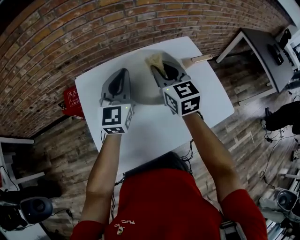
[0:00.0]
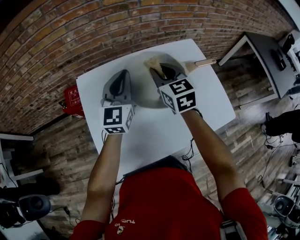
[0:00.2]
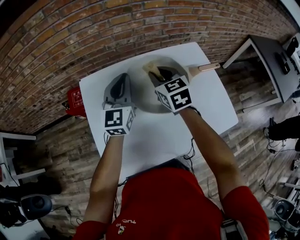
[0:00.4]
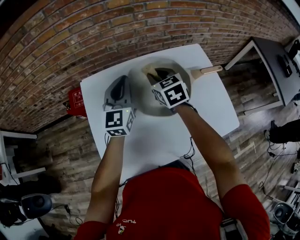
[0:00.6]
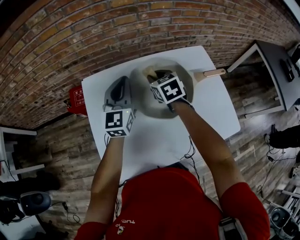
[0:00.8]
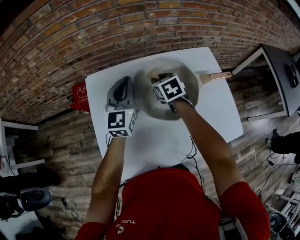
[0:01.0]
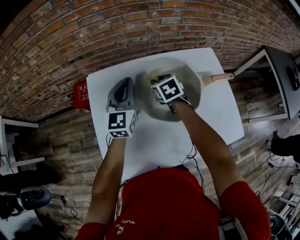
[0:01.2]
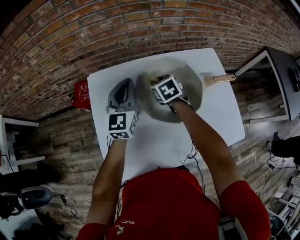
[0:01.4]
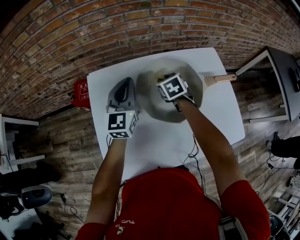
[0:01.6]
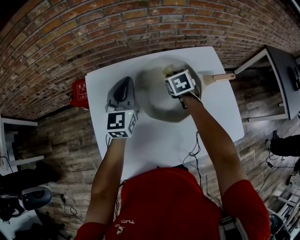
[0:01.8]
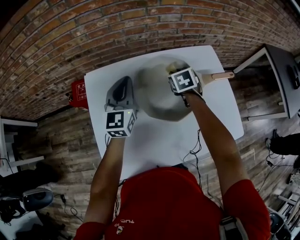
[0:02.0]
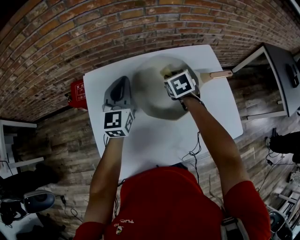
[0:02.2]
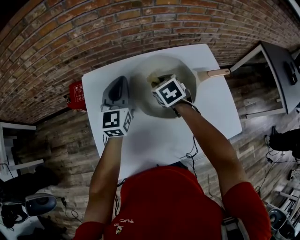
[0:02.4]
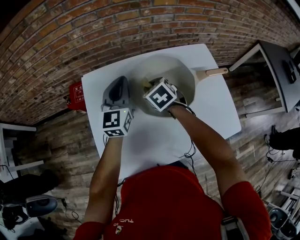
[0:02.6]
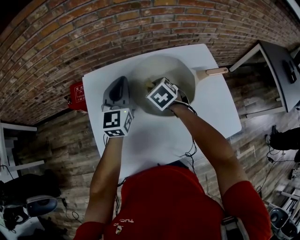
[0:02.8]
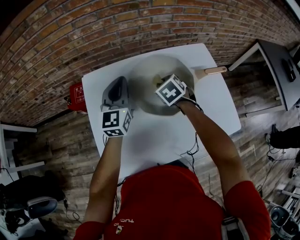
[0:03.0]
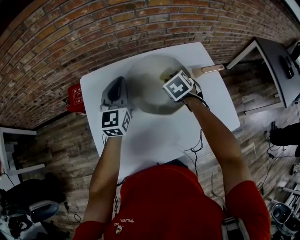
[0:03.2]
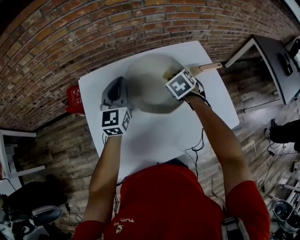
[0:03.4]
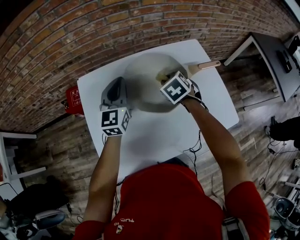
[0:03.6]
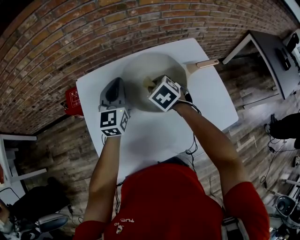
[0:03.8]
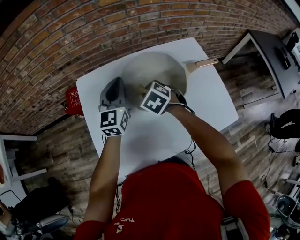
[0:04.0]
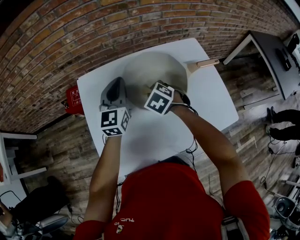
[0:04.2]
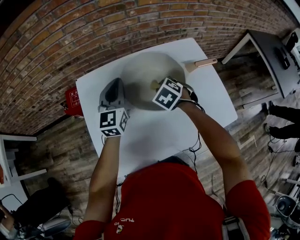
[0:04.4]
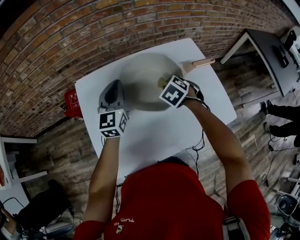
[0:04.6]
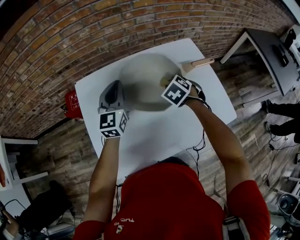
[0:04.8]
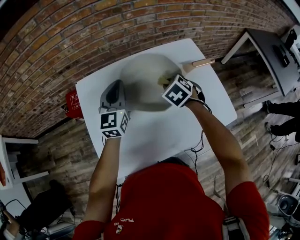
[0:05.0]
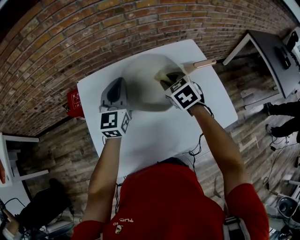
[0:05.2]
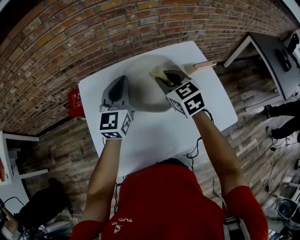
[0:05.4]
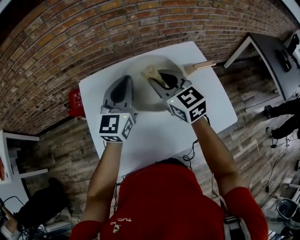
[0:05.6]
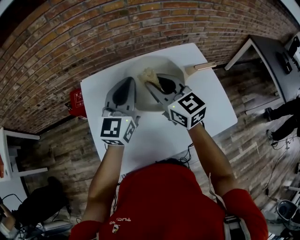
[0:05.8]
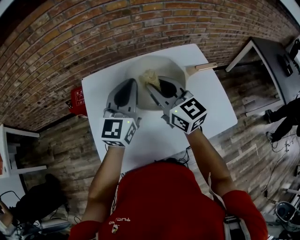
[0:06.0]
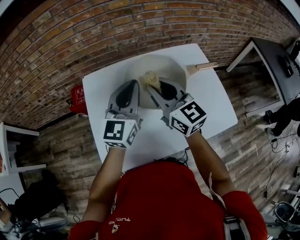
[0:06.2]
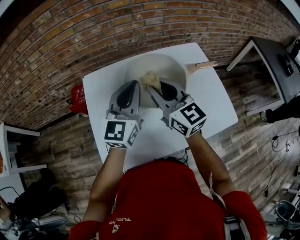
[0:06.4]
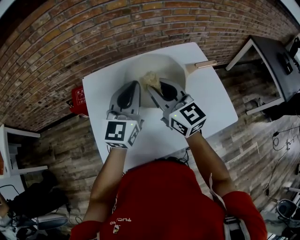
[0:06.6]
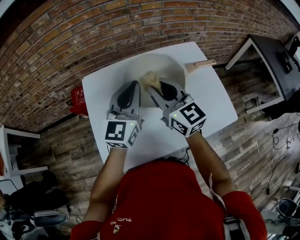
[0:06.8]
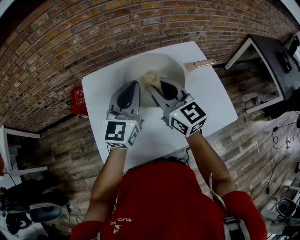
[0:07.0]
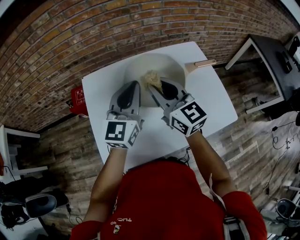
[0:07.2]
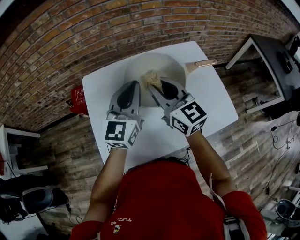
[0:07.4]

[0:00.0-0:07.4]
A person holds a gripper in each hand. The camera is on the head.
0:00.0 to 0:01.4: The left gripper travels forward and downward by approximately 10 cm. Meanwhile the right gripper moves downward and forward, some 20 cm, and angles its fingers downward, by some 40 degrees.
0:01.4 to 0:03.0: The right gripper swings left and right, some 15 cm each way, with 2 reversals.
0:03.0 to 0:04.4: The right gripper moves left and right over about 10 cm, changing direction 2 times.
0:04.4 to 0:06.0: The right gripper goes approximately 20 cm upward, and angles its fingers upward, by some 60 degrees; the left gripper is displaced upward, backward and to the right by approximately 10 cm.
0:06.0 to 0:07.4: There are only small adjustments of the grippers.

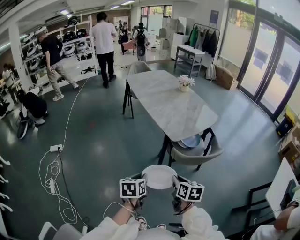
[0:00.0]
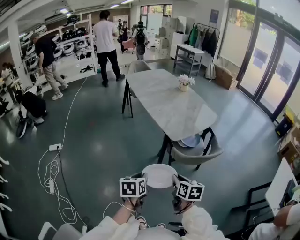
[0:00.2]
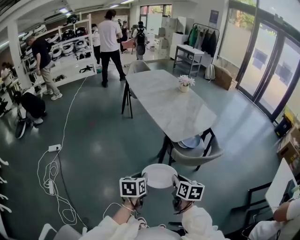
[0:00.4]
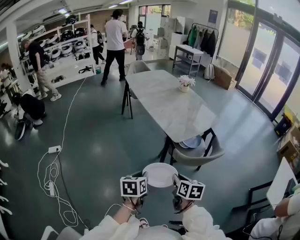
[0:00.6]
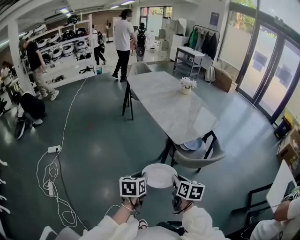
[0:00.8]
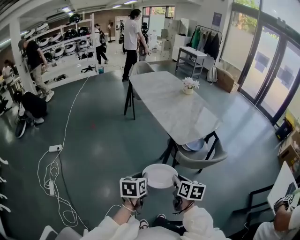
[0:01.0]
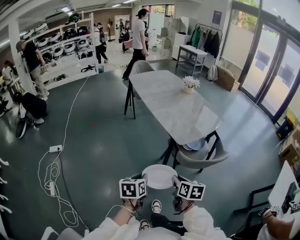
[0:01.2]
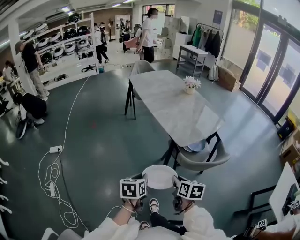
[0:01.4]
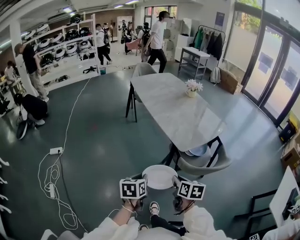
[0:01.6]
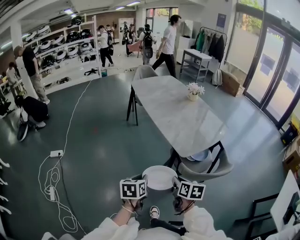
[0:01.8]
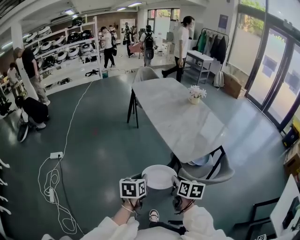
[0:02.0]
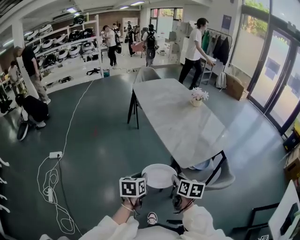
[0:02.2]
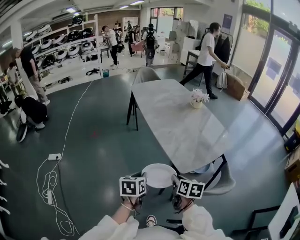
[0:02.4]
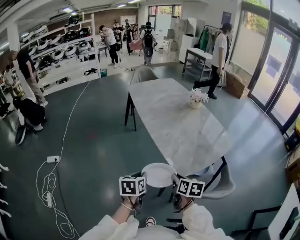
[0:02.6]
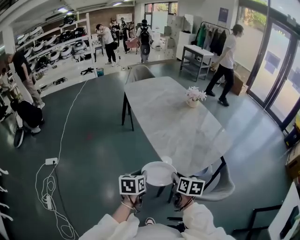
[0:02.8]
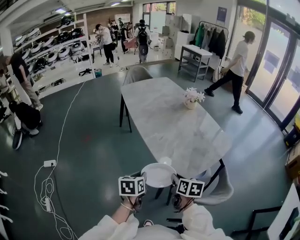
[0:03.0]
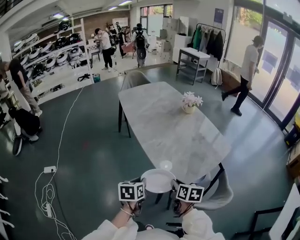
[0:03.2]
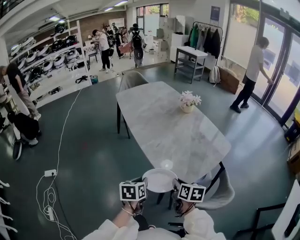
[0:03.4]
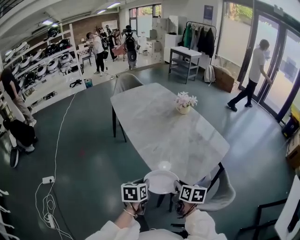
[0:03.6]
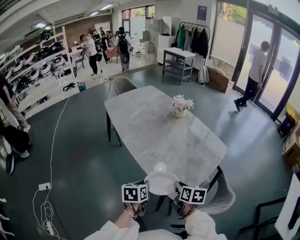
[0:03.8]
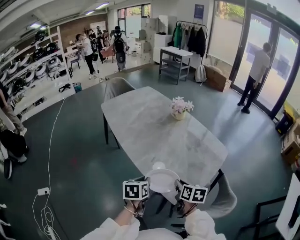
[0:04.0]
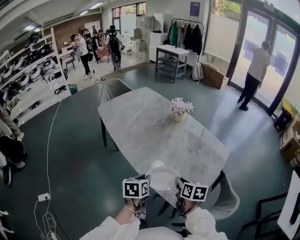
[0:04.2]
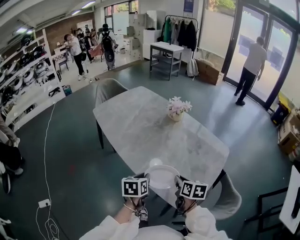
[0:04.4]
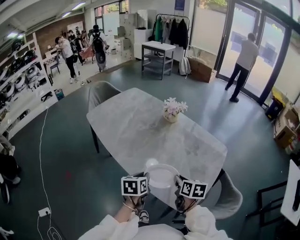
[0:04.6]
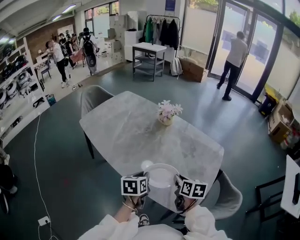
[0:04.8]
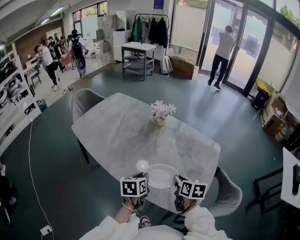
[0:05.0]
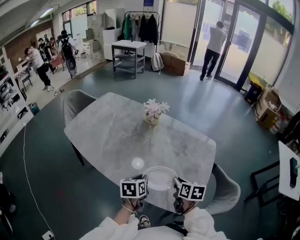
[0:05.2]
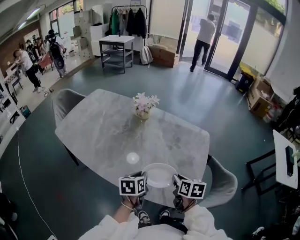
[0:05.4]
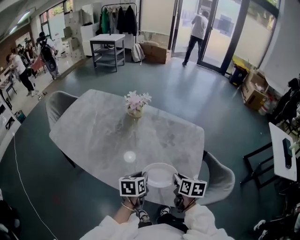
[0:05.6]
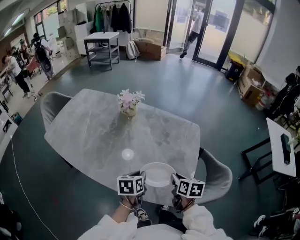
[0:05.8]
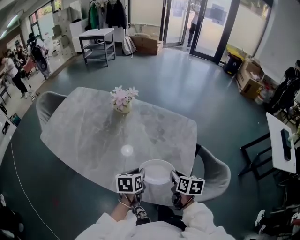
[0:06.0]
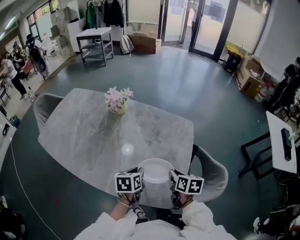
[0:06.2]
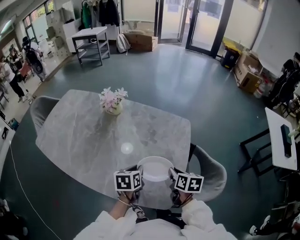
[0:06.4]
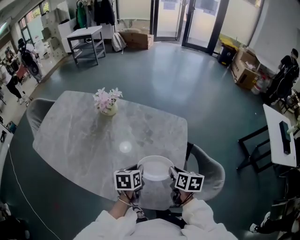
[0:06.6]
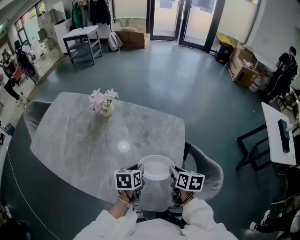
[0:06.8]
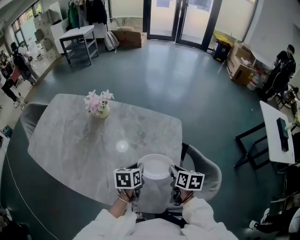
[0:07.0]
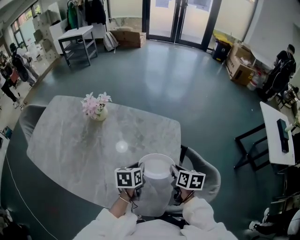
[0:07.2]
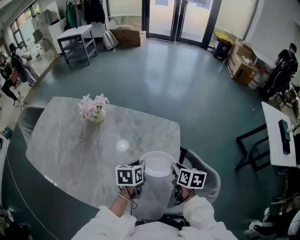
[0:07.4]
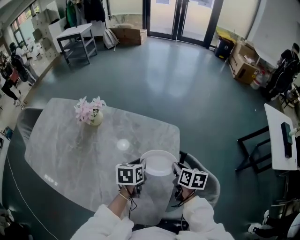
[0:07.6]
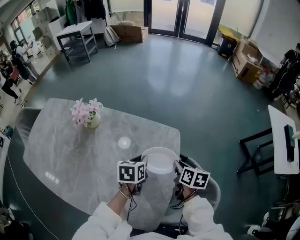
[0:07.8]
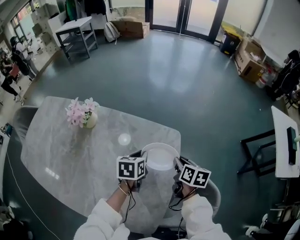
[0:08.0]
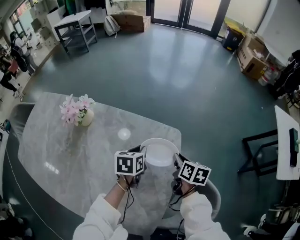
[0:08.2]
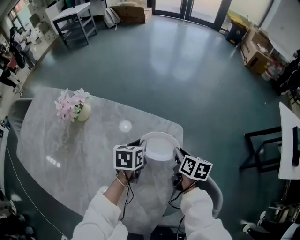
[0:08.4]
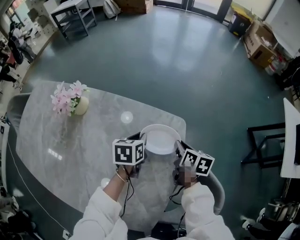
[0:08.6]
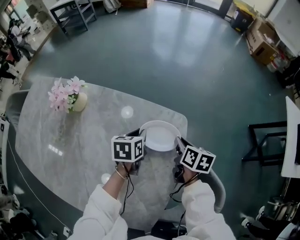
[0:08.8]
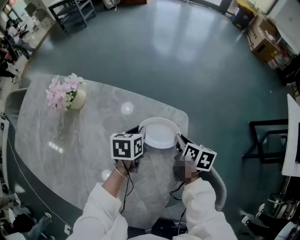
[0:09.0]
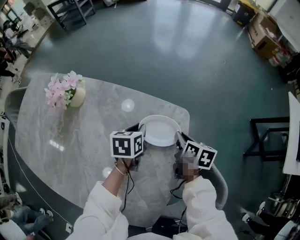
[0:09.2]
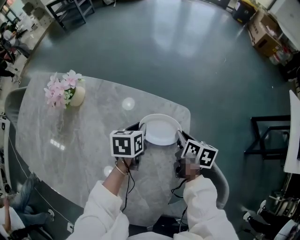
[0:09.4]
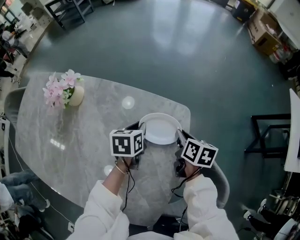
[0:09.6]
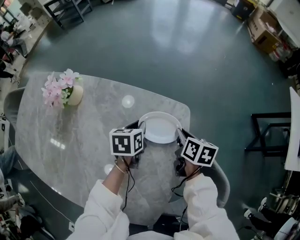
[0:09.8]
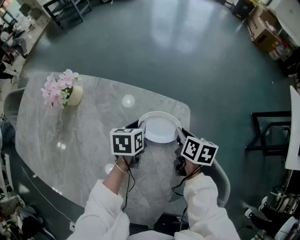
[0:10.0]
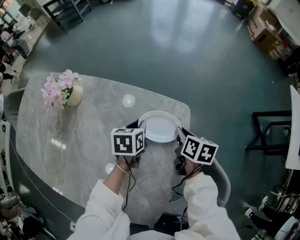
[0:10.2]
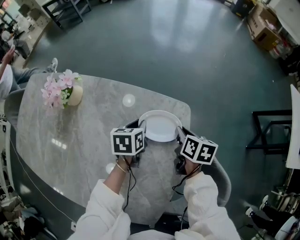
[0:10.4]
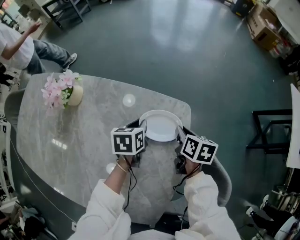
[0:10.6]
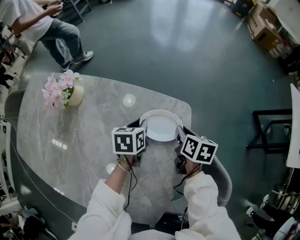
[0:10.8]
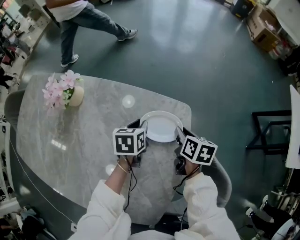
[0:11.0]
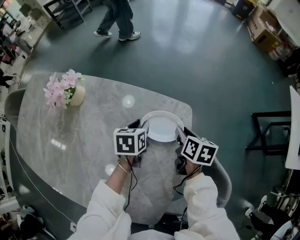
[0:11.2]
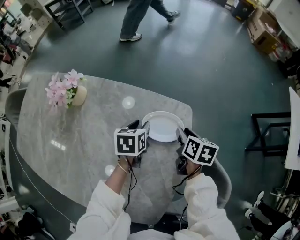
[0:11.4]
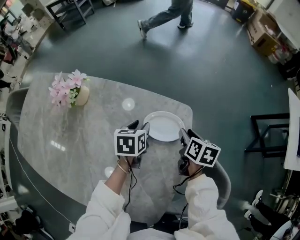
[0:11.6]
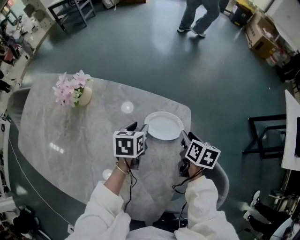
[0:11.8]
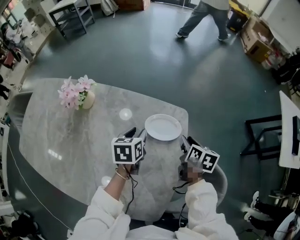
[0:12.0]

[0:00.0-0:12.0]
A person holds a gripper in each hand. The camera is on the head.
0:00.0 to 0:01.6: Both grippers move forward and to the left, about 10 cm.
0:01.6 to 0:03.0: Both grippers travel together forward, roughly 25 cm.
0:03.0 to 0:04.4: Both grippers move forward, roughly 20 cm.
0:04.4 to 0:06.0: The left gripper moves approximately 15 cm, and rotates about 30 degrees. The right gripper moves about 10 cm, and swivels roughly 30 degrees.
0:06.0 to 0:07.6: The two grippers go about 20 cm forward and to the right.
0:07.6 to 0:09.0: Both grippers travel together forward and downward, some 15 cm.
0:09.0 to 0:10.4: There are only small adjustments of the grippers.
0:10.4 to 0:12.0: The two grippers go some 5 cm upward. The left gripper opens. The right gripper opens up.

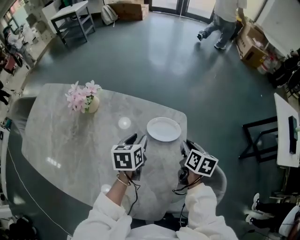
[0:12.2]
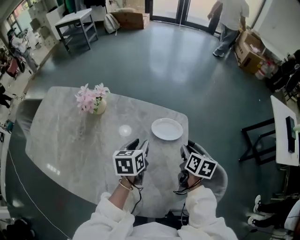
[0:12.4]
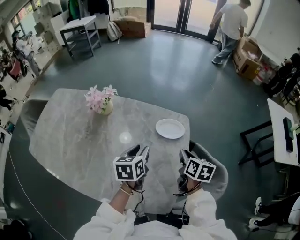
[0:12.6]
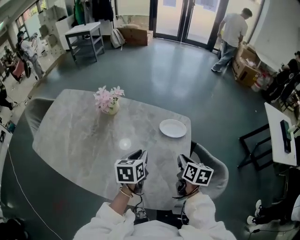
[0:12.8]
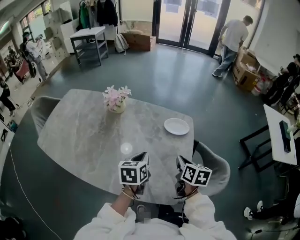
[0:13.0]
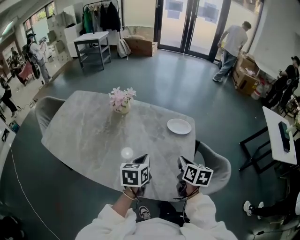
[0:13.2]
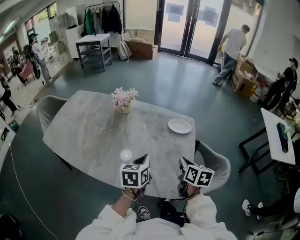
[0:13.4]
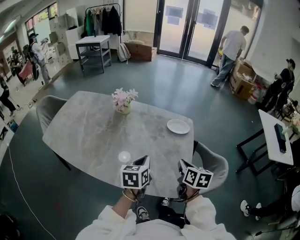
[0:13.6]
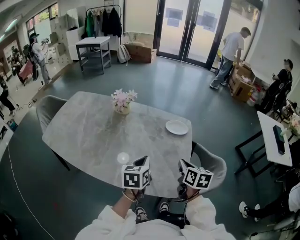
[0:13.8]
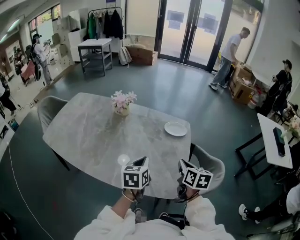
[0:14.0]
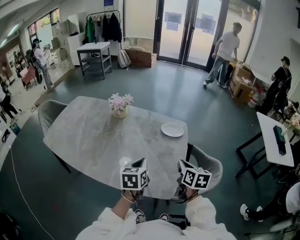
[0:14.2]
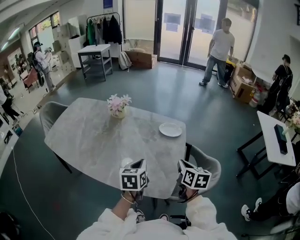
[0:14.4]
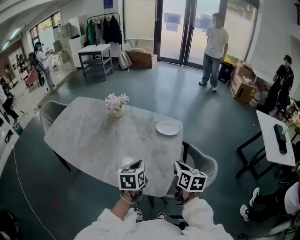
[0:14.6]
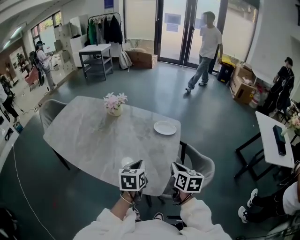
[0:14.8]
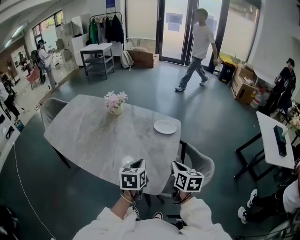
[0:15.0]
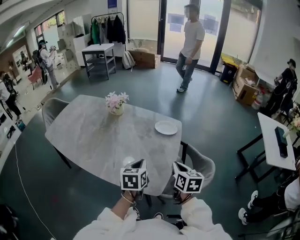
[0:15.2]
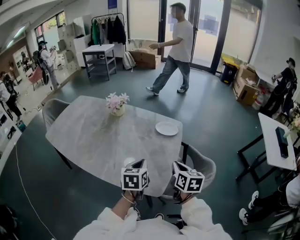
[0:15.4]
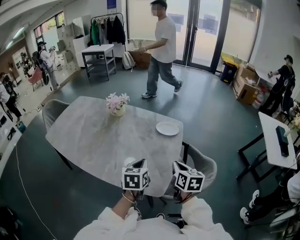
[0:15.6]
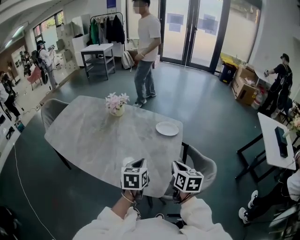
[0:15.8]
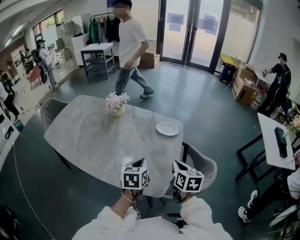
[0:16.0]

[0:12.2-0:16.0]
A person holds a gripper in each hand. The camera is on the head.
0:12.2 to 0:13.4: The left gripper heads backward, covering approximately 25 cm, and closes; the right gripper shifts approximately 30 cm backward, to the left and upward, and closes its fingers.
0:13.4 to 0:14.8: Both grippers travel together to the right and backward, approximately 10 cm.
0:14.8 to 0:16.0: The grippers make only small movements.
